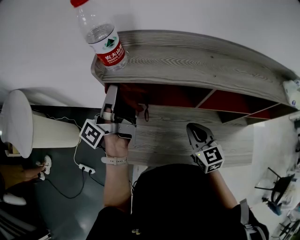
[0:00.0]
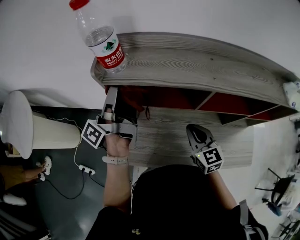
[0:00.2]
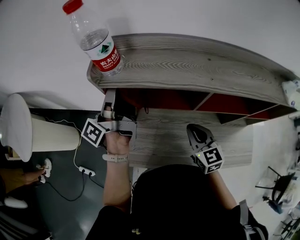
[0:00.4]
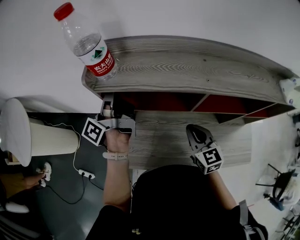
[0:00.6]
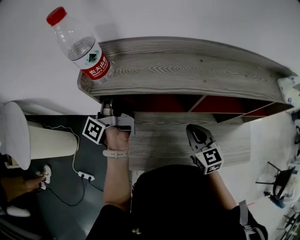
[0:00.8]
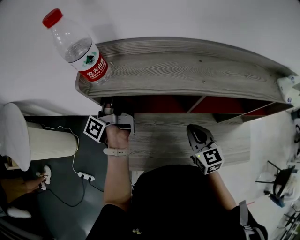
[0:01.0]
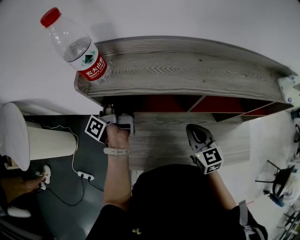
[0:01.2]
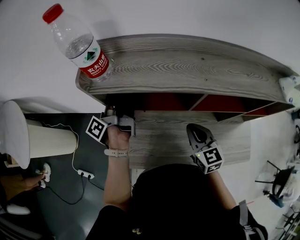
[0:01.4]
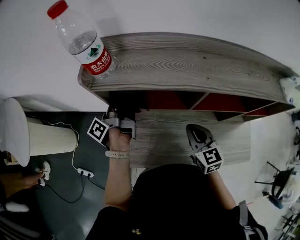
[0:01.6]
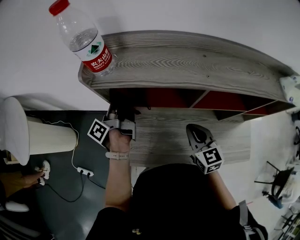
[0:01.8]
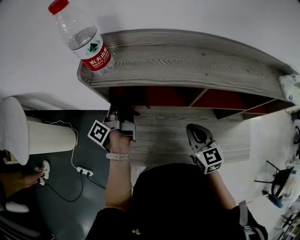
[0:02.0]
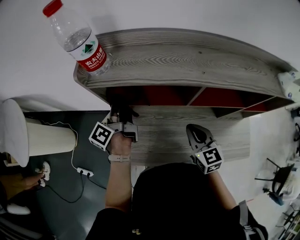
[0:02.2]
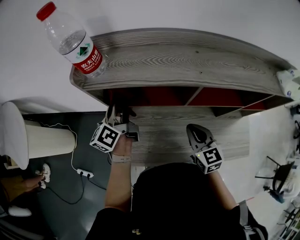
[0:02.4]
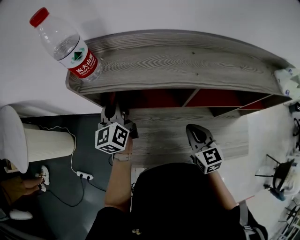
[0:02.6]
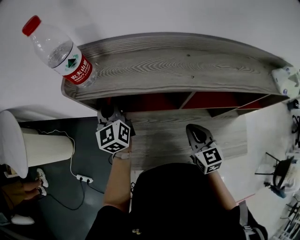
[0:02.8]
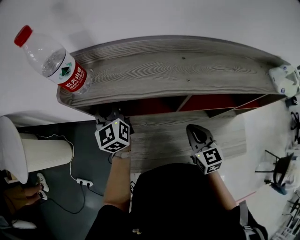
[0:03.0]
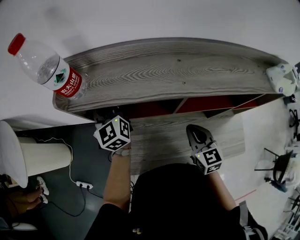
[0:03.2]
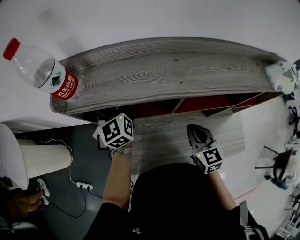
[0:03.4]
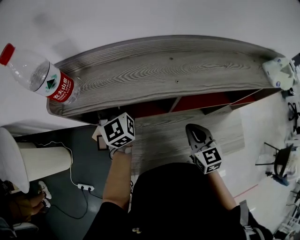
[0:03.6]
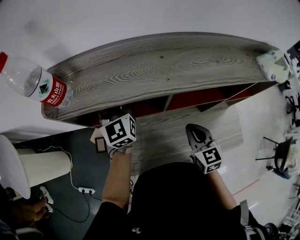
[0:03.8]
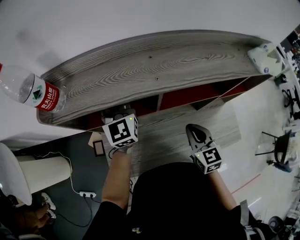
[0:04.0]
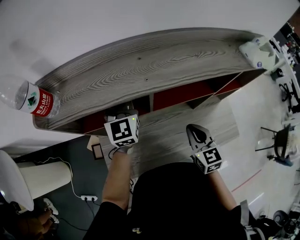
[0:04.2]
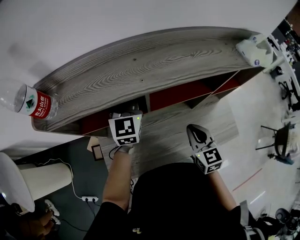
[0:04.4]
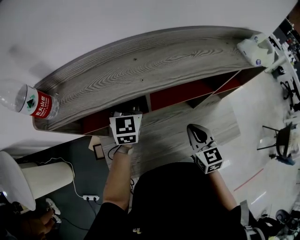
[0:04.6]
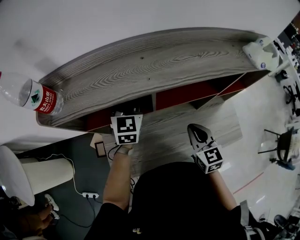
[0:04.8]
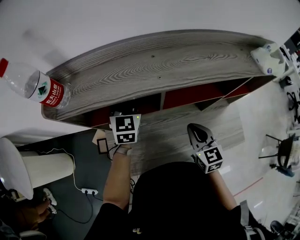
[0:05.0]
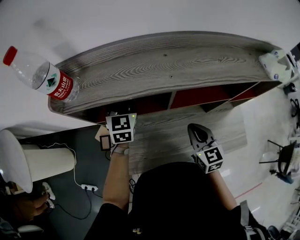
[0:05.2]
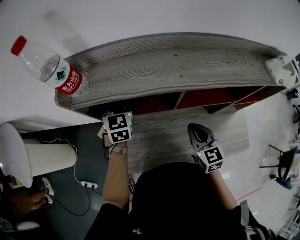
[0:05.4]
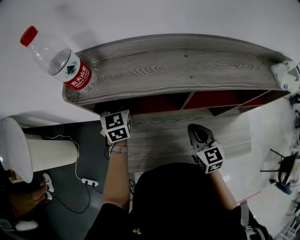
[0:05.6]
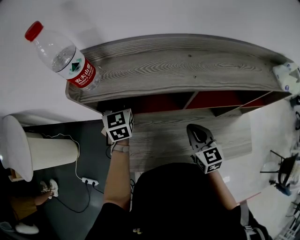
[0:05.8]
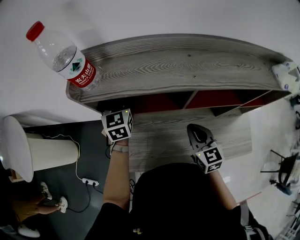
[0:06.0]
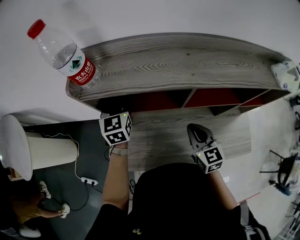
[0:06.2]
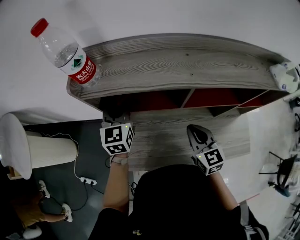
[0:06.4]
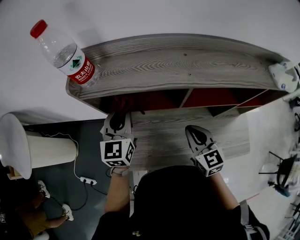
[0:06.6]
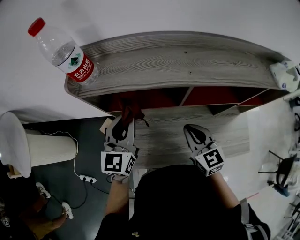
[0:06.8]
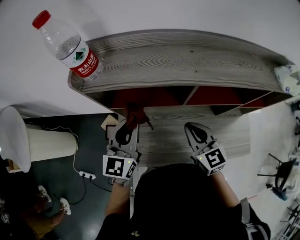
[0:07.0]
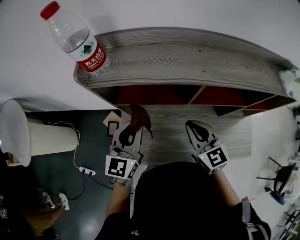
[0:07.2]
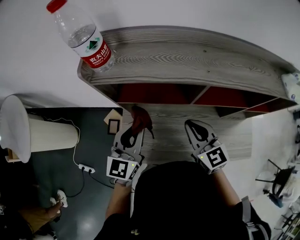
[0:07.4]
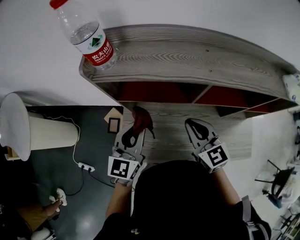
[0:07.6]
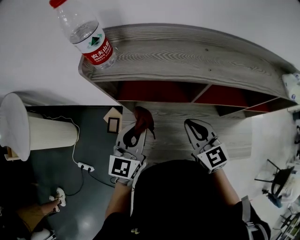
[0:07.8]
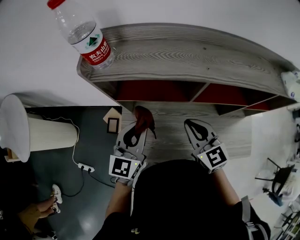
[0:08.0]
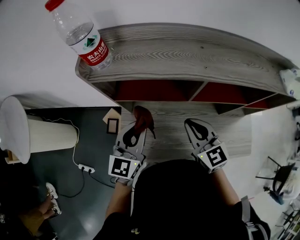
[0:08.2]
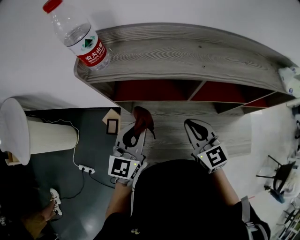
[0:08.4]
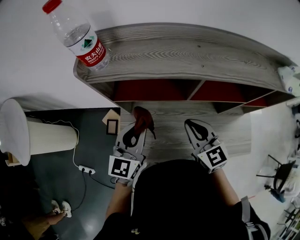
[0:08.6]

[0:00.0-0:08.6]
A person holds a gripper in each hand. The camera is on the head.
0.0 to 1.4 s: The left gripper travels downward and forward by approximately 10 cm.
1.4 to 2.8 s: The left gripper rotates around the line of its fingers by approximately 80 degrees, clockwise from behind.
2.8 to 4.4 s: The right gripper travels to the right by roughly 10 cm. The left gripper heads to the right, covering about 25 cm, and changes its angle by roughly 40 degrees.
4.4 to 5.8 s: The left gripper is displaced to the left by some 20 cm, and swivels approximately 30 degrees; the right gripper is displaced to the left by some 10 cm.
5.8 to 7.2 s: The left gripper moves backward, roughly 20 cm, and changes its angle by approximately 20 degrees; the right gripper goes some 5 cm upward.
7.2 to 8.6 s: The grippers make only small movements.

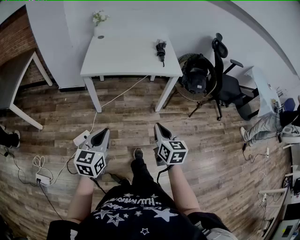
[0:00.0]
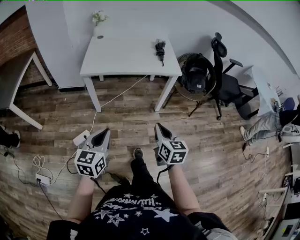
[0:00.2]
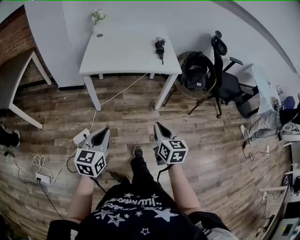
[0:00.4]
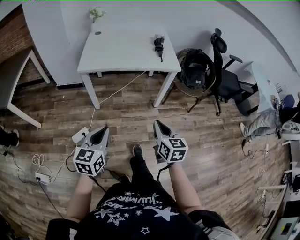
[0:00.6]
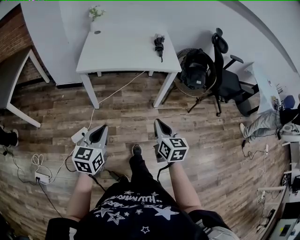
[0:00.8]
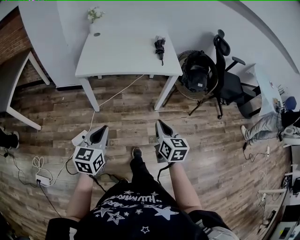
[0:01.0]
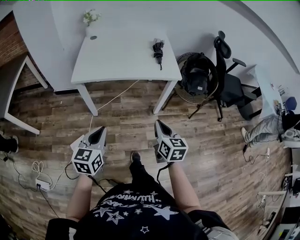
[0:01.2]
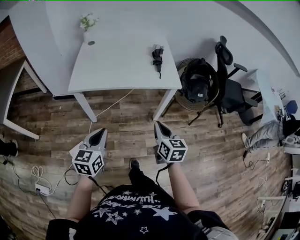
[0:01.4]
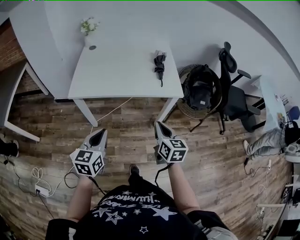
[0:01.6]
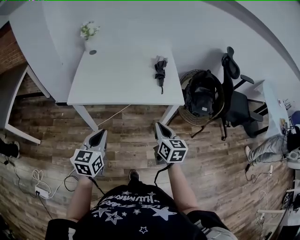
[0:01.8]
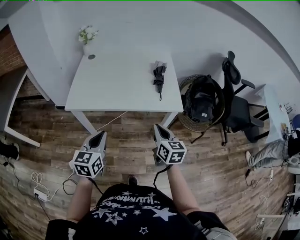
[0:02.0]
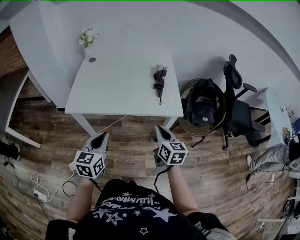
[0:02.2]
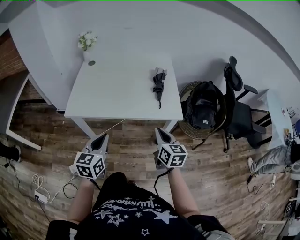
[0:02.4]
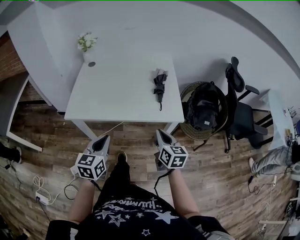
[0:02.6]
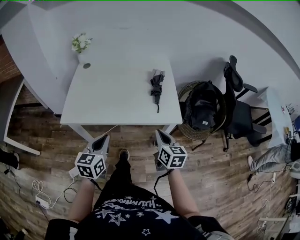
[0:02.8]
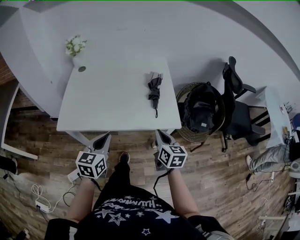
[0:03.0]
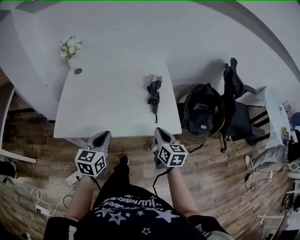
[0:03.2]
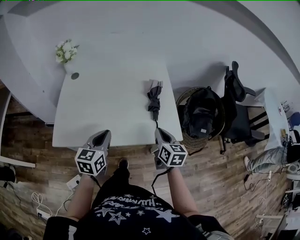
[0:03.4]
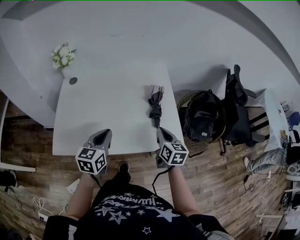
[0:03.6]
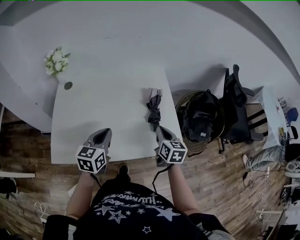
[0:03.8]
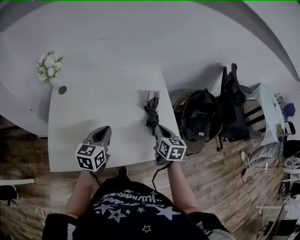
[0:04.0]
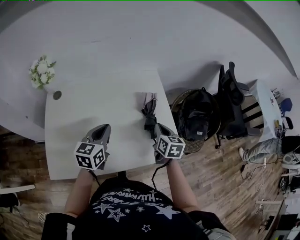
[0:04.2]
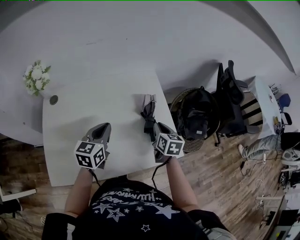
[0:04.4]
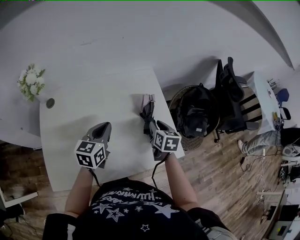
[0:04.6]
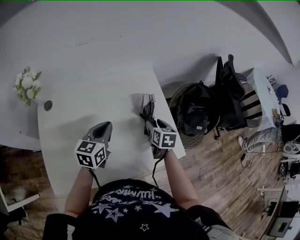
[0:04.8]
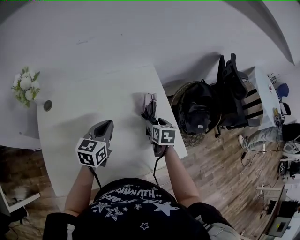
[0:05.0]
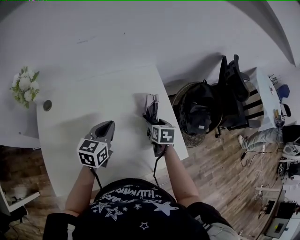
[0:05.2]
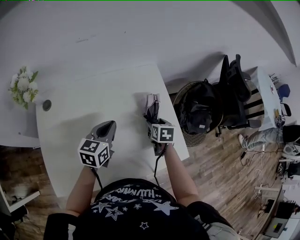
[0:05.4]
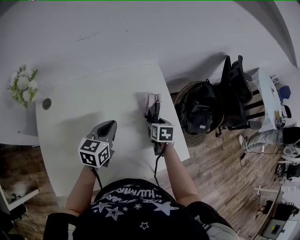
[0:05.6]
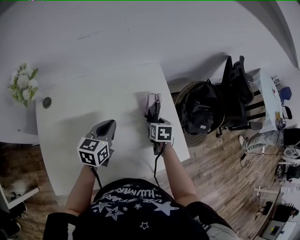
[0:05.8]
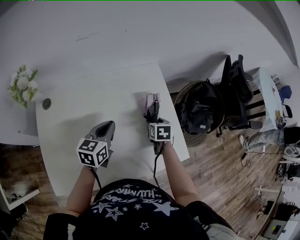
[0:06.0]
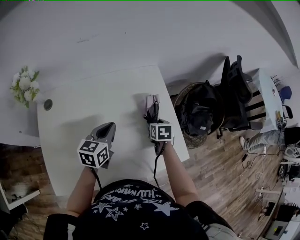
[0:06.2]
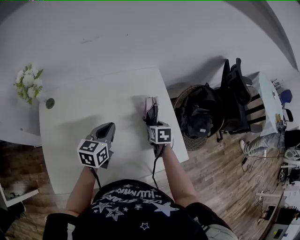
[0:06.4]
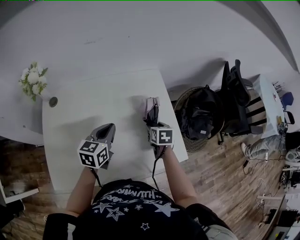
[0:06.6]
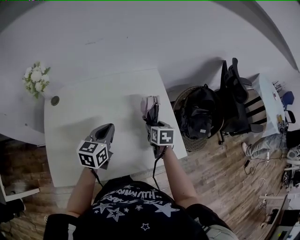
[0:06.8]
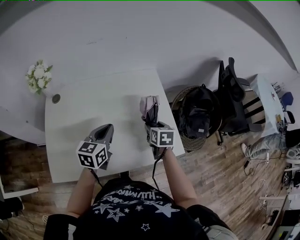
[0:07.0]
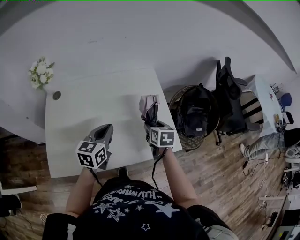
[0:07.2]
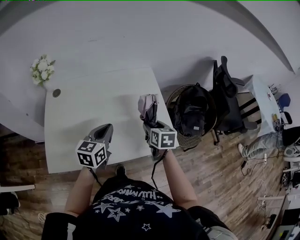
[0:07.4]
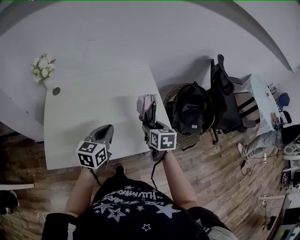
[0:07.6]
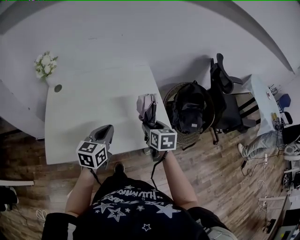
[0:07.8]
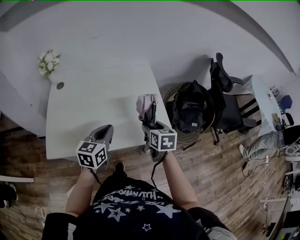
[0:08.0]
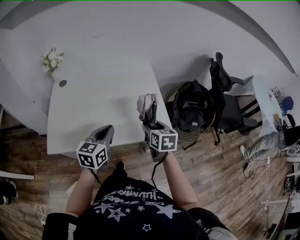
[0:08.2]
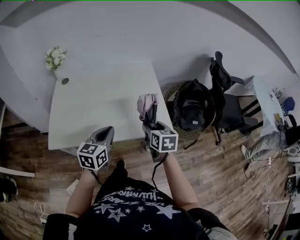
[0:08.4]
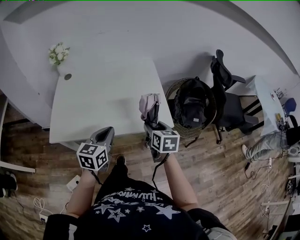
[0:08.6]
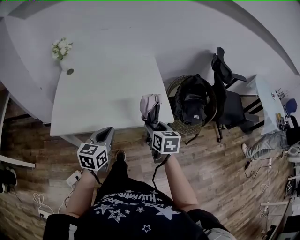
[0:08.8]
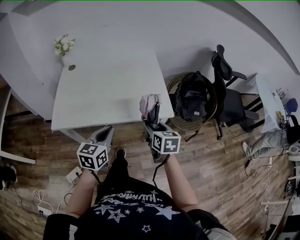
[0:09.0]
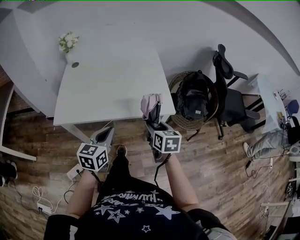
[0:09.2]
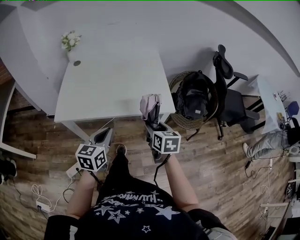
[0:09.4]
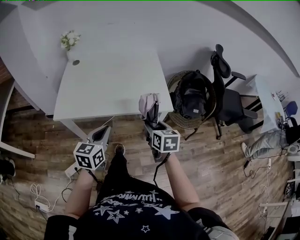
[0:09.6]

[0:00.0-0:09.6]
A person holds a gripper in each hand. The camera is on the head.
0.0 to 1.6 s: Both grippers travel together forward, some 20 cm.
1.6 to 3.2 s: The grippers both shift forward by about 25 cm.
3.2 to 4.8 s: The grippers both shift forward by roughly 25 cm. The right gripper swivels about 30 degrees, and opens.
4.8 to 6.4 s: The right gripper heads downward, covering roughly 5 cm.
6.4 to 8.0 s: The right gripper is displaced backward and upward by about 20 cm. The left gripper goes about 20 cm backward.
8.0 to 9.6 s: Both grippers travel together backward, about 20 cm.

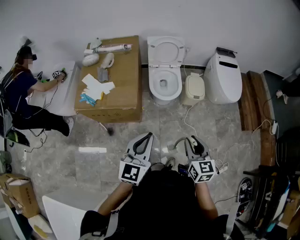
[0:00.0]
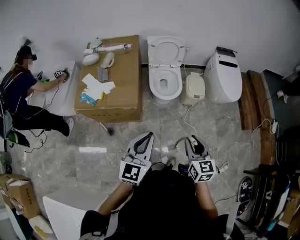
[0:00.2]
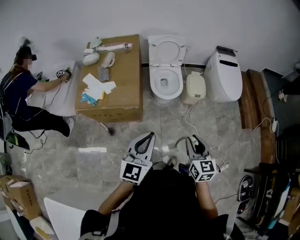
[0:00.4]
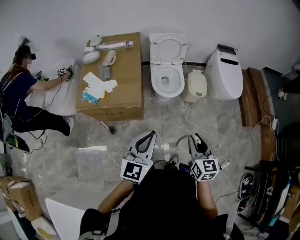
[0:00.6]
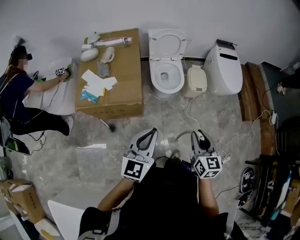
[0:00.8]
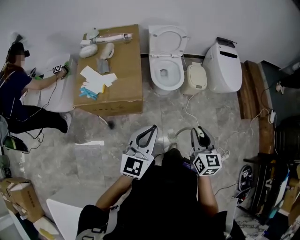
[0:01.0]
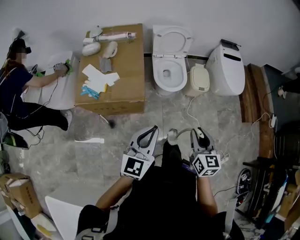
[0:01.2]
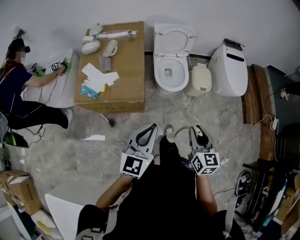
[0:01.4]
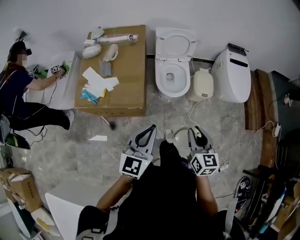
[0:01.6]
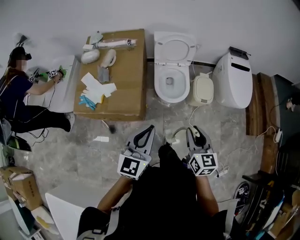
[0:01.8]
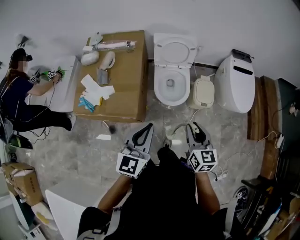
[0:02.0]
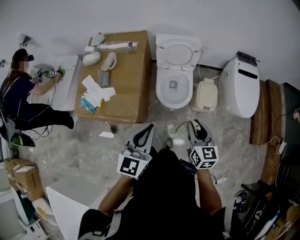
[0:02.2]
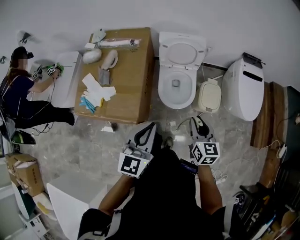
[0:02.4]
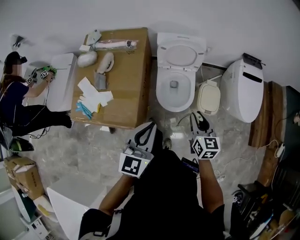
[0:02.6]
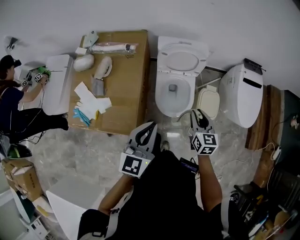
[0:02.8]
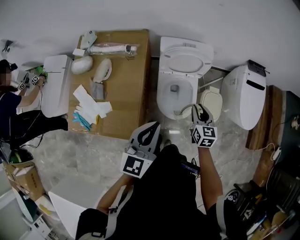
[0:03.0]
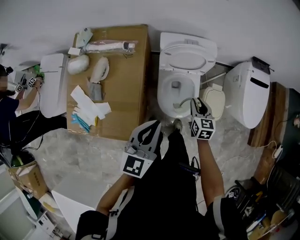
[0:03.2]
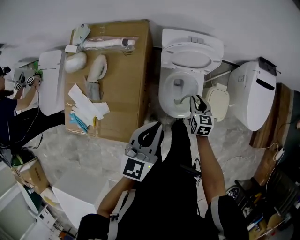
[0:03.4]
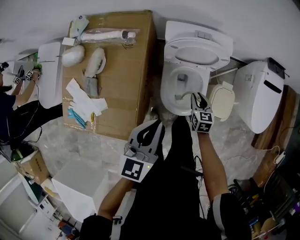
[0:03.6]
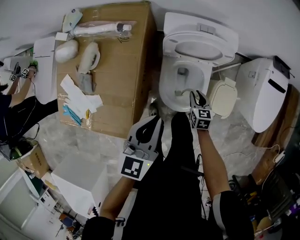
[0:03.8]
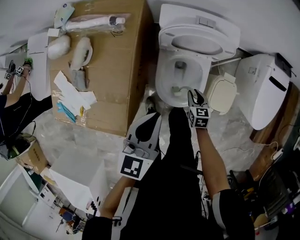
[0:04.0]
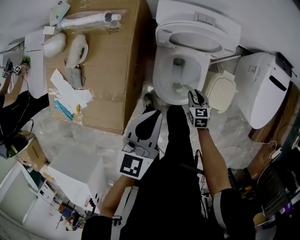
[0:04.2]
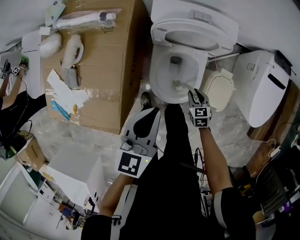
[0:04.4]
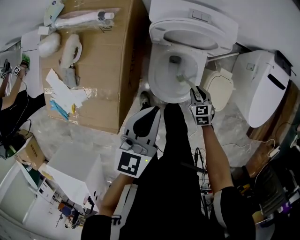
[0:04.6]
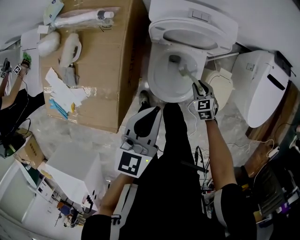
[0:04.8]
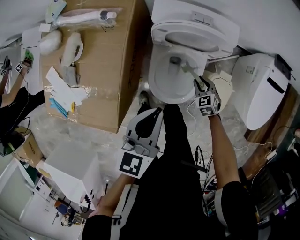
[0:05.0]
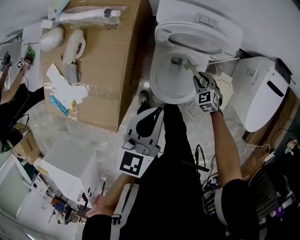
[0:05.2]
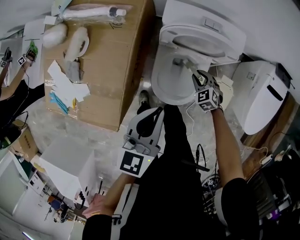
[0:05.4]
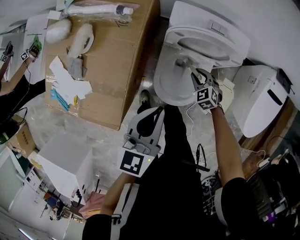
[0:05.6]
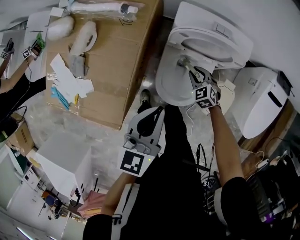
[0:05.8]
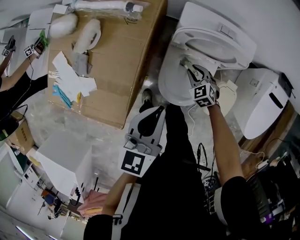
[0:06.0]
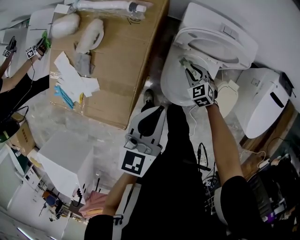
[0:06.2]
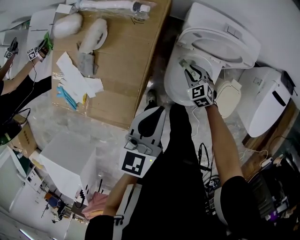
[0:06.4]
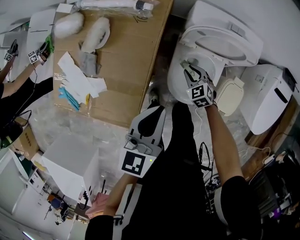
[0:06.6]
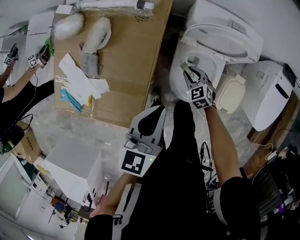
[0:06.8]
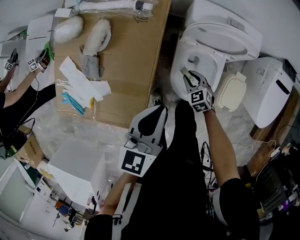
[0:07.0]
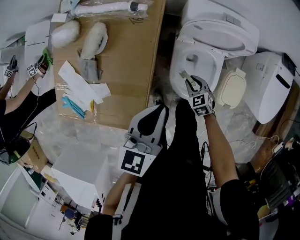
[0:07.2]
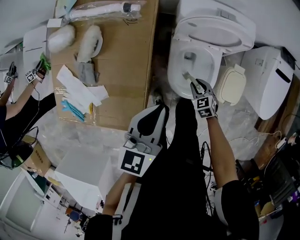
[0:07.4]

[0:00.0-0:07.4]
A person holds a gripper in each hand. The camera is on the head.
0.0 to 1.4 s: The grippers both shift to the left and forward by about 10 cm.
1.4 to 3.0 s: Both grippers travel together forward, roughly 40 cm.
3.0 to 4.4 s: The right gripper heads downward, covering approximately 30 cm, and turns by approximately 30 degrees. Meanwhile the left gripper heads downward and forward, covering about 20 cm.
4.4 to 6.0 s: The right gripper is displaced forward and to the left by roughly 15 cm, and rotates about 40 degrees. Meanwhile the left gripper is displaced to the left by roughly 5 cm.
6.0 to 7.4 s: The left gripper travels to the left by about 5 cm. Meanwhile the right gripper moves backward, about 10 cm, and rotates about 20 degrees.
